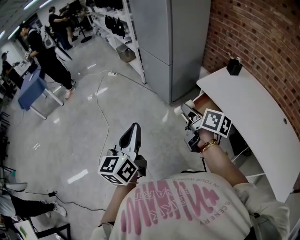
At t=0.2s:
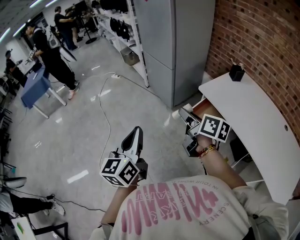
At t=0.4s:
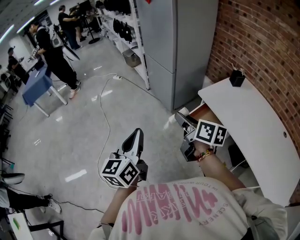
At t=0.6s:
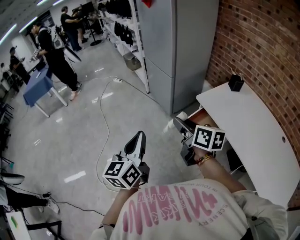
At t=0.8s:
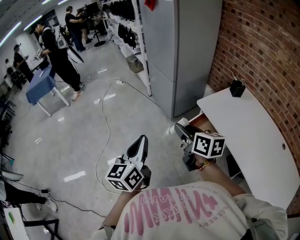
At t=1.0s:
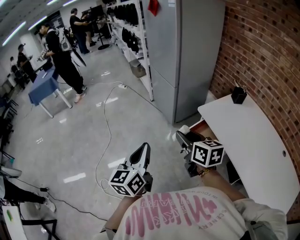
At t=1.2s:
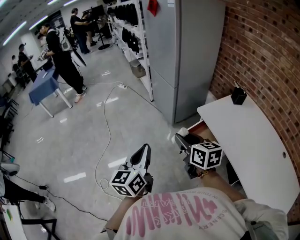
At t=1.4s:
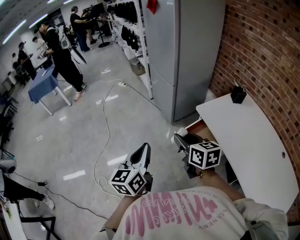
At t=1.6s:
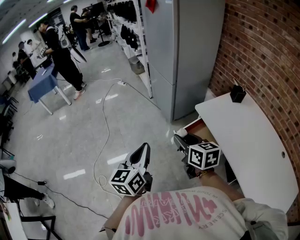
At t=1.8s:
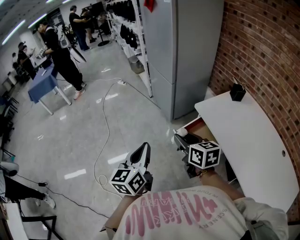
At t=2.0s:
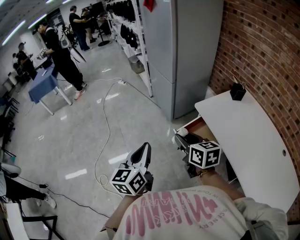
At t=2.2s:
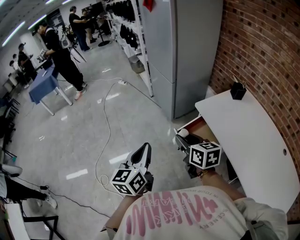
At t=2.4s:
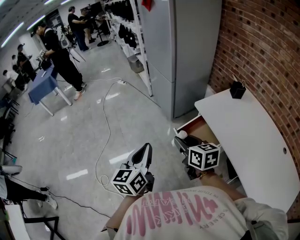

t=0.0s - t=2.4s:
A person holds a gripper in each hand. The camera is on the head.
t=0.0s - t=1.2s: The left gripper is displaced to the right by roughly 10 cm. Meanwhile the right gripper rotates approximately 30 degrees.
t=1.2s - t=2.4s: The grippers make only small movements.

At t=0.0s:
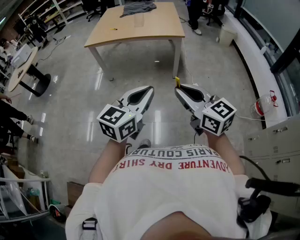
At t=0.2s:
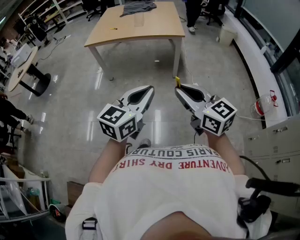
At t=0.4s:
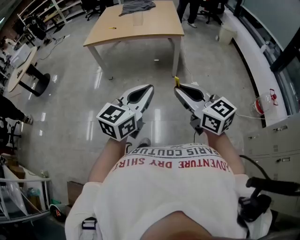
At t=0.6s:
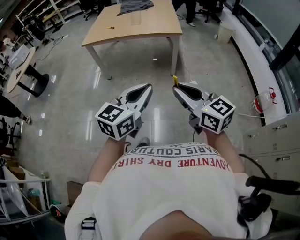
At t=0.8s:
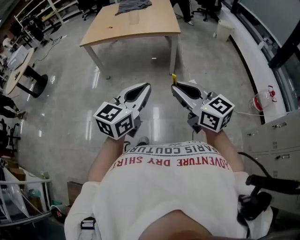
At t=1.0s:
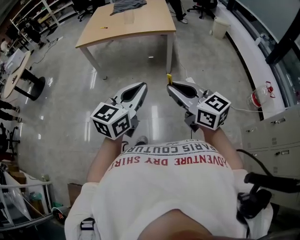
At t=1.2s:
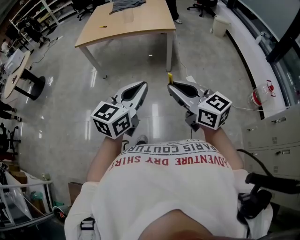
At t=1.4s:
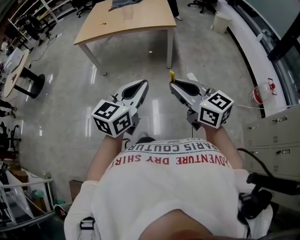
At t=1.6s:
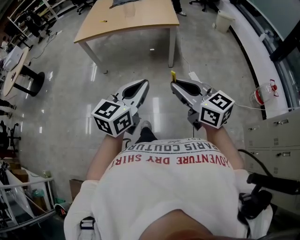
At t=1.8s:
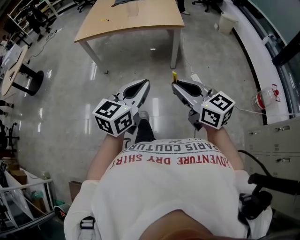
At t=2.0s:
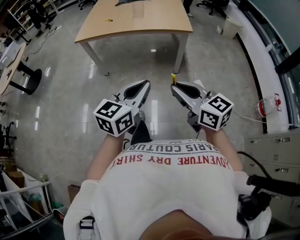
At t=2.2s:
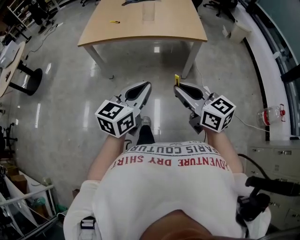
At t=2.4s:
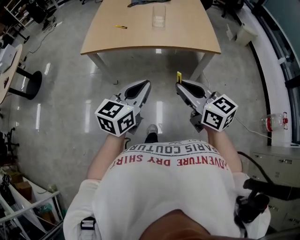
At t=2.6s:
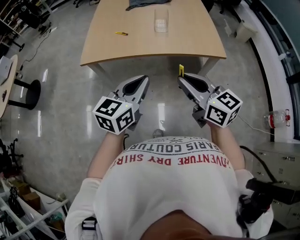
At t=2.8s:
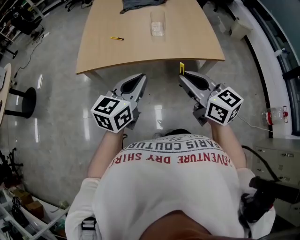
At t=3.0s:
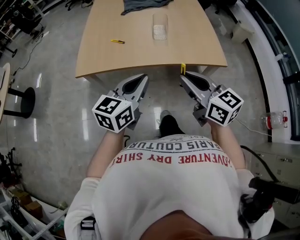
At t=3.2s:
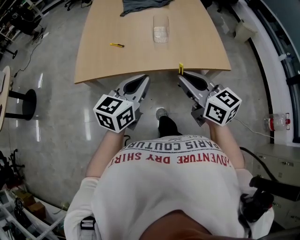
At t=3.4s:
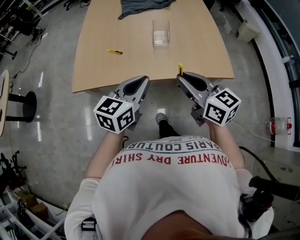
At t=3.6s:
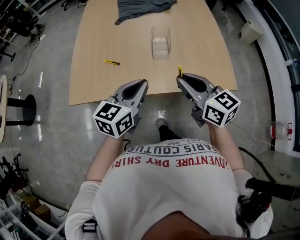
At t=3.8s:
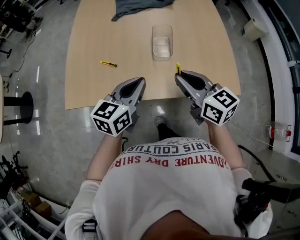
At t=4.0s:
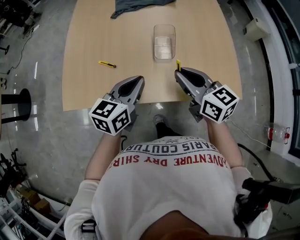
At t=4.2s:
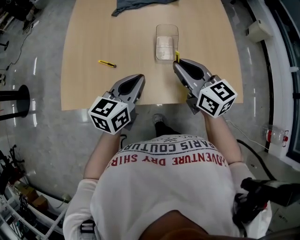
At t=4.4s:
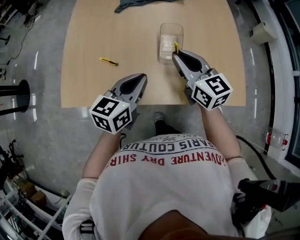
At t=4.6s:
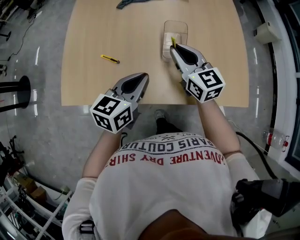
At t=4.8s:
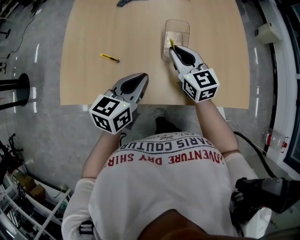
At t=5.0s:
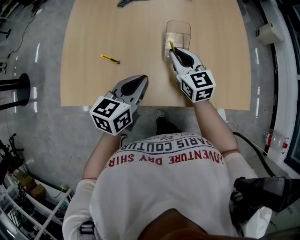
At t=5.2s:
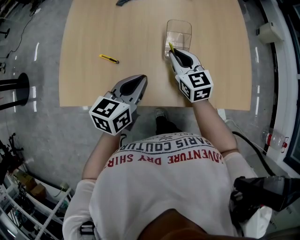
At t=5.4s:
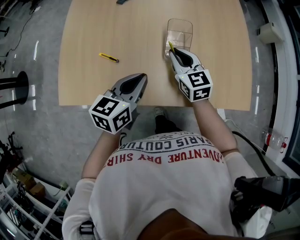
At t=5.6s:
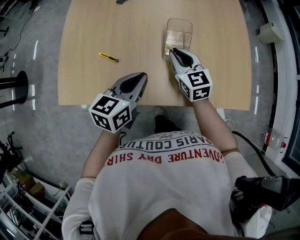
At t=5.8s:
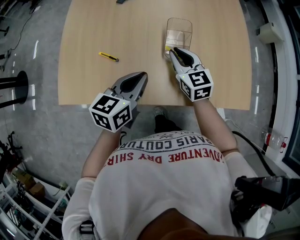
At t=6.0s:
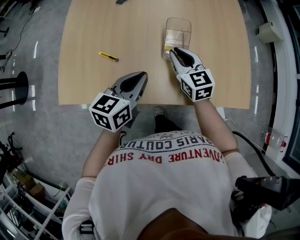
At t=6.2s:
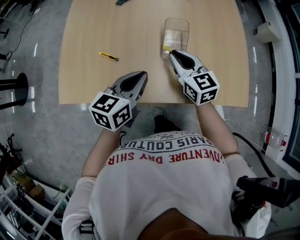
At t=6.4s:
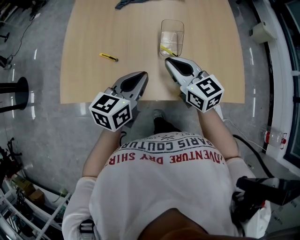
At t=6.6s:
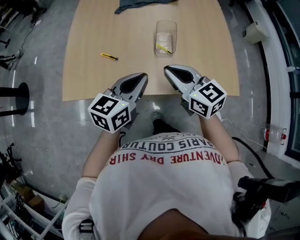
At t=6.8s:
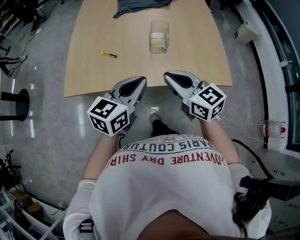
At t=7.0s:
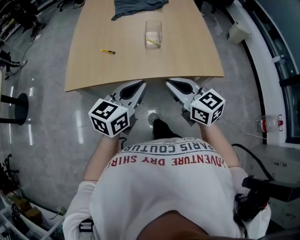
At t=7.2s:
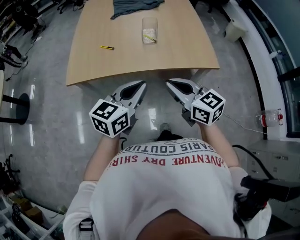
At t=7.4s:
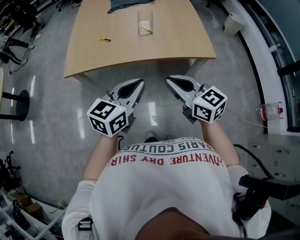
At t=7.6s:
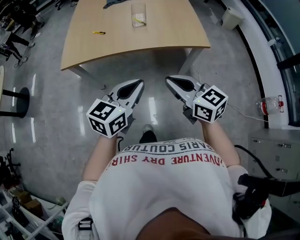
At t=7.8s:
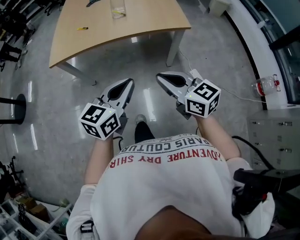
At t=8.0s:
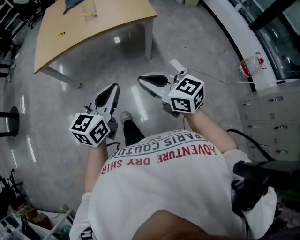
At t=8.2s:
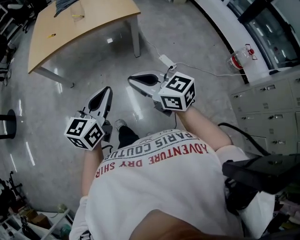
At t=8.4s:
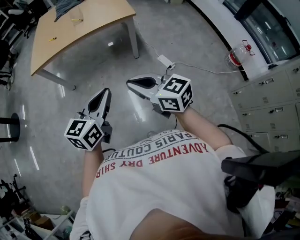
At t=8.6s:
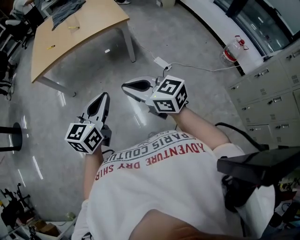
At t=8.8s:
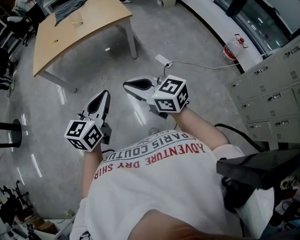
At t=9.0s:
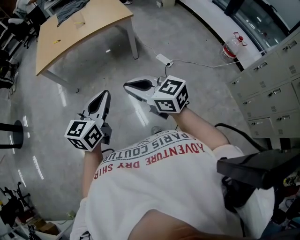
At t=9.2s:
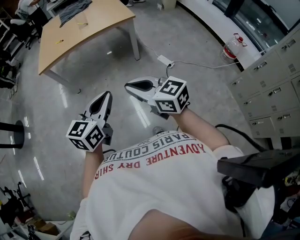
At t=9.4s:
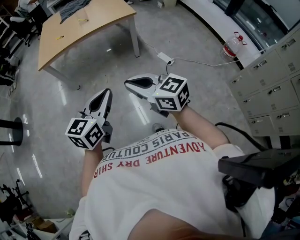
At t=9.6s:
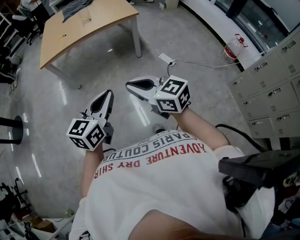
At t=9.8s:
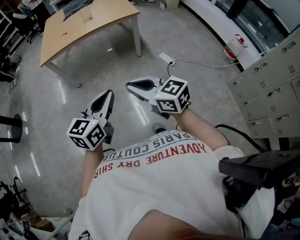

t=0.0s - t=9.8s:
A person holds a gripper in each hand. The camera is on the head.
t=0.0s - t=1.4s: The left gripper shifts by some 5 cm.
t=1.4s - t=2.8s: The two grippers travel together, forward and to the left, approximately 80 cm.
t=2.8s - t=4.2s: The two grippers travel together, forward, some 40 cm.
t=4.2s - t=5.6s: The right gripper goes approximately 15 cm downward and forward. Meanwhile the left gripper moves downward, some 5 cm.
t=5.6s - t=7.0s: The two grippers go about 40 cm backward and upward.
t=7.0s - t=8.4s: The two grippers travel together, backward and to the right, some 70 cm.
t=8.4s - t=9.8s: The two grippers go roughly 20 cm backward and to the left.

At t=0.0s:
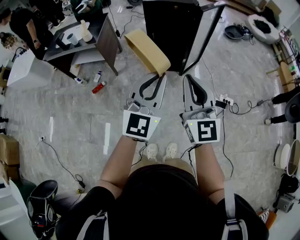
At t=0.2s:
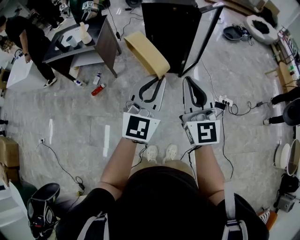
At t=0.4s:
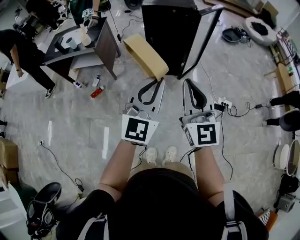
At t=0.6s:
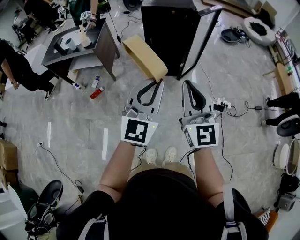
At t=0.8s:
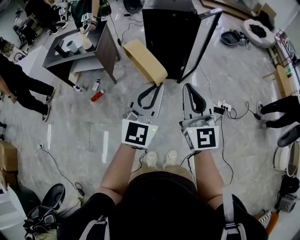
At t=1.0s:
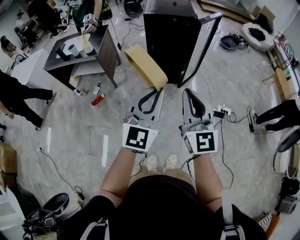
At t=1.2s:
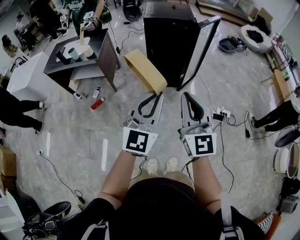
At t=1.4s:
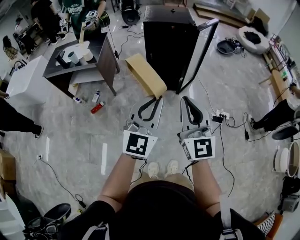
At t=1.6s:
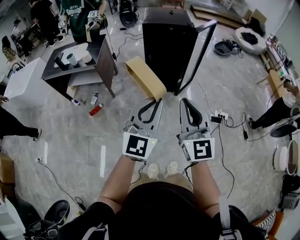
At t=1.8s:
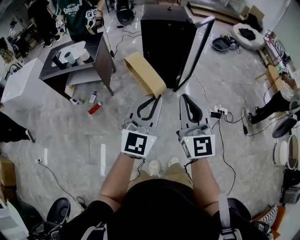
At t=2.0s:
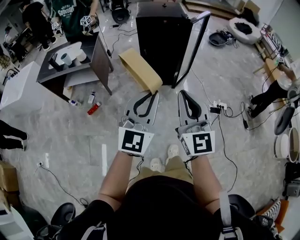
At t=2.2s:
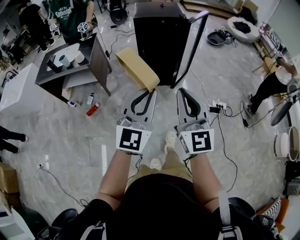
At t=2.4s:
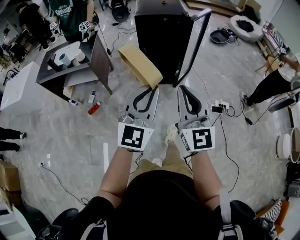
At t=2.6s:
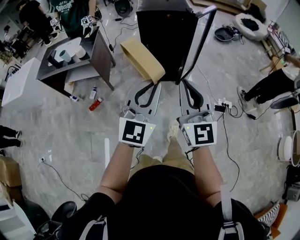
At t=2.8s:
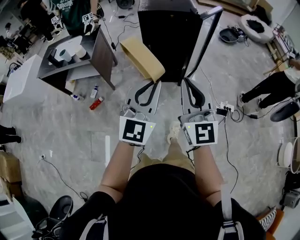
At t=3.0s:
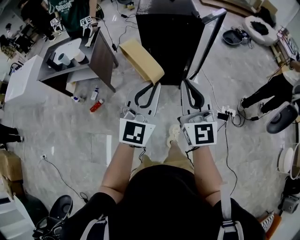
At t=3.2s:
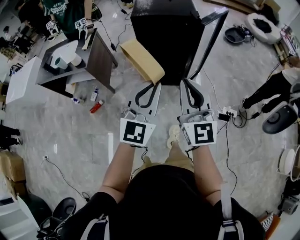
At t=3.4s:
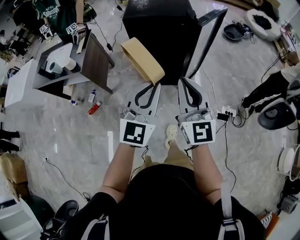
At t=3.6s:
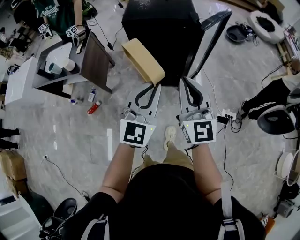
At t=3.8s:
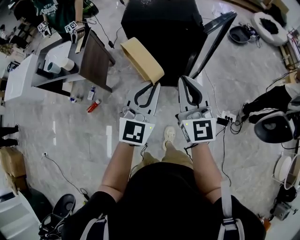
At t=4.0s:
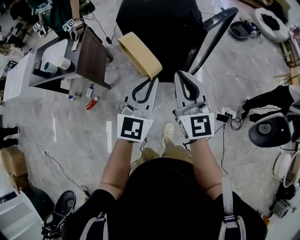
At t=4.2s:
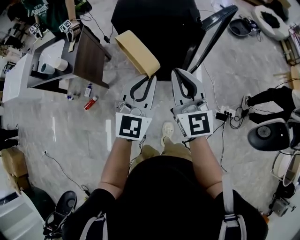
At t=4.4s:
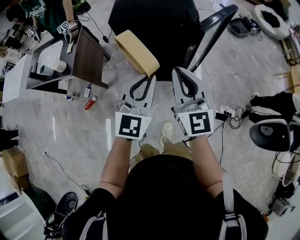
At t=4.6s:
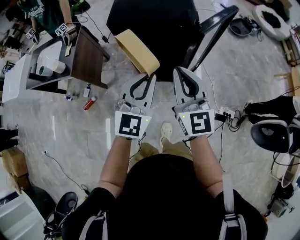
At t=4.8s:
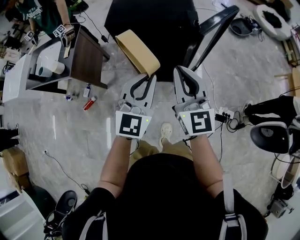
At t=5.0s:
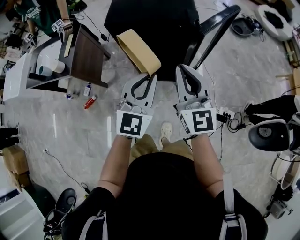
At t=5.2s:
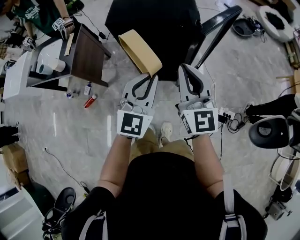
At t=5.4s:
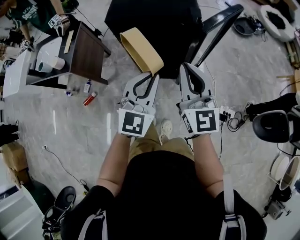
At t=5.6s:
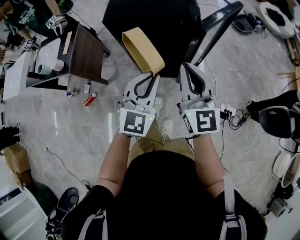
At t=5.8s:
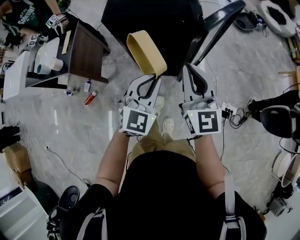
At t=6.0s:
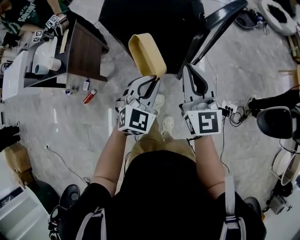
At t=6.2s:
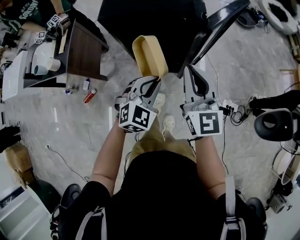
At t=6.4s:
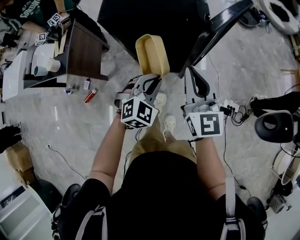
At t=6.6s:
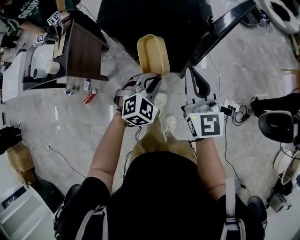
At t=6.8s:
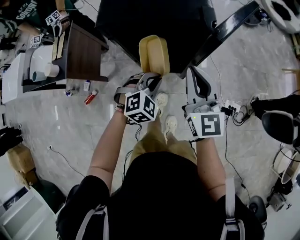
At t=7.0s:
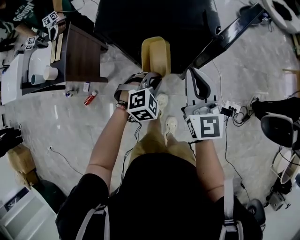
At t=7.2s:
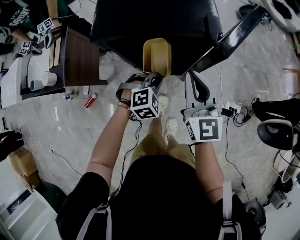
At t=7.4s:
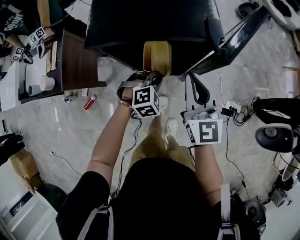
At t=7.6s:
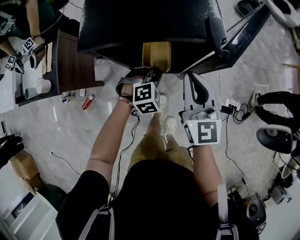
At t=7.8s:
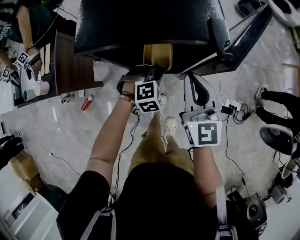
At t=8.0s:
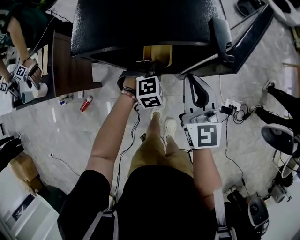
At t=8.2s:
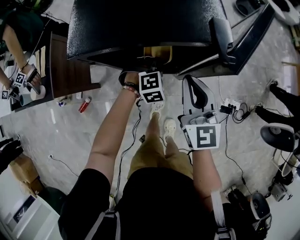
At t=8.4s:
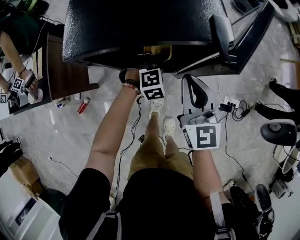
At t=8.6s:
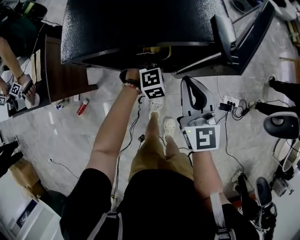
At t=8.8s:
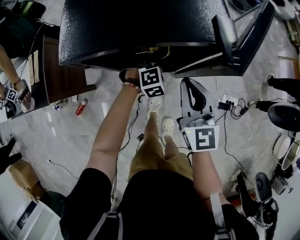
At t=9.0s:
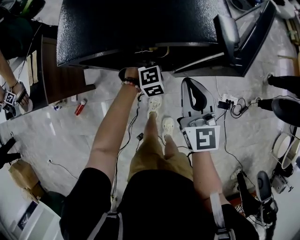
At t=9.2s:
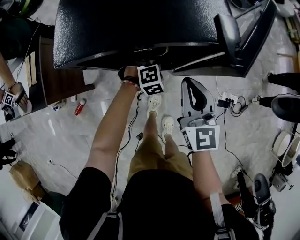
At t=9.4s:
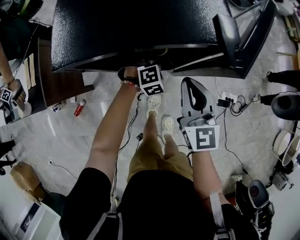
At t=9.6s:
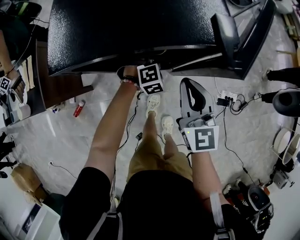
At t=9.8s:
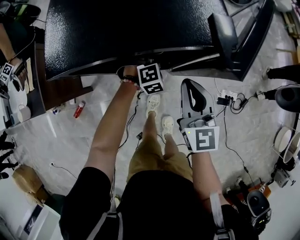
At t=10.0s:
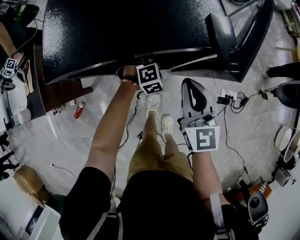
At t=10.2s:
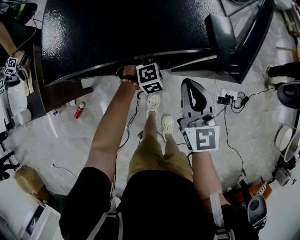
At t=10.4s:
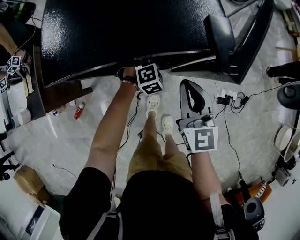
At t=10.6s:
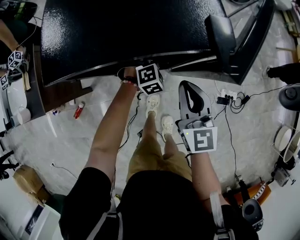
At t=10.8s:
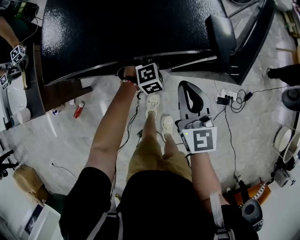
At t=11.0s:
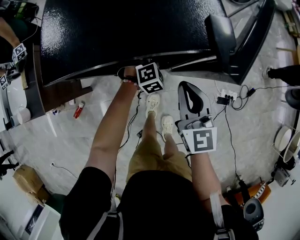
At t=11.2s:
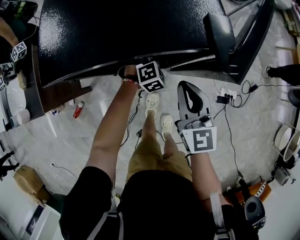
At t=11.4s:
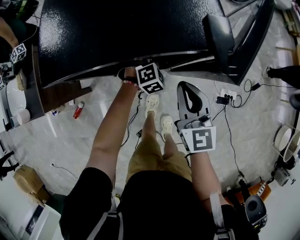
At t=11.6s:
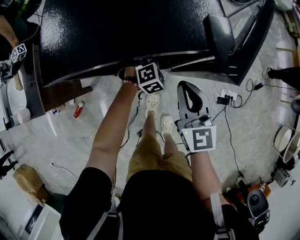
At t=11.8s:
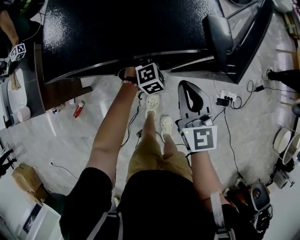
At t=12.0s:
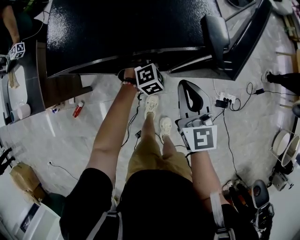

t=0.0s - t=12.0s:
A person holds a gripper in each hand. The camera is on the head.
t=0.0s - t=1.6s: The grippers both shift to the left by some 5 cm.
t=1.6s - t=3.0s: The grippers both shift forward by roughly 20 cm.
t=3.0s - t=4.4s: Both grippers travel together forward, some 30 cm.
t=4.4s - t=6.0s: The right gripper travels forward by approximately 5 cm. Meanwhile the left gripper moves downward, roughly 10 cm, and changes its angle by about 30 degrees.
t=6.0s - t=7.6s: The left gripper travels forward and downward by roughly 25 cm, and angles its fingers downward, by approximately 30 degrees. Meanwhile the right gripper shifts some 20 cm forward and downward.
t=7.6s - t=9.0s: The left gripper goes some 10 cm forward and downward. Meanwhile the right gripper heads downward, covering roughly 5 cm.
t=9.0s - t=12.0s: The grippers make only small movements.
